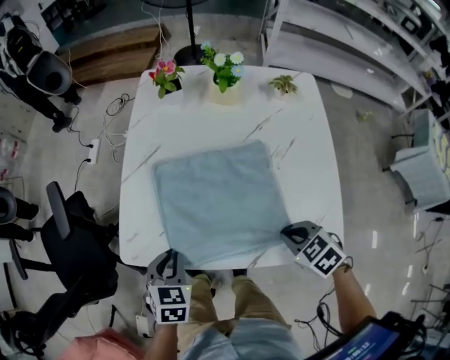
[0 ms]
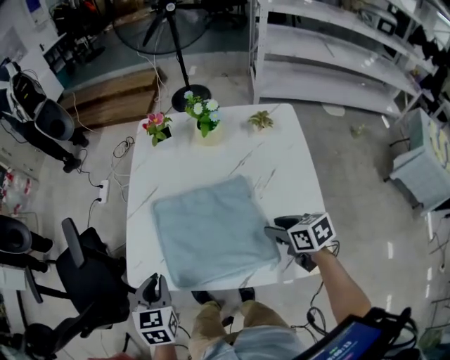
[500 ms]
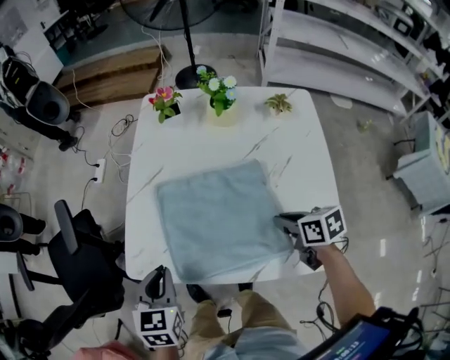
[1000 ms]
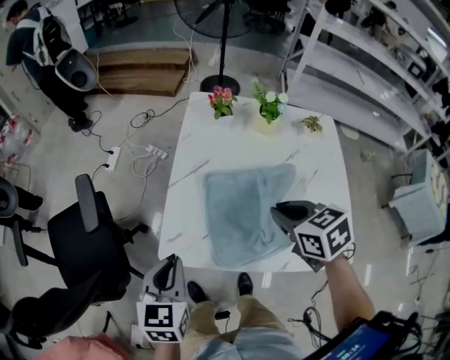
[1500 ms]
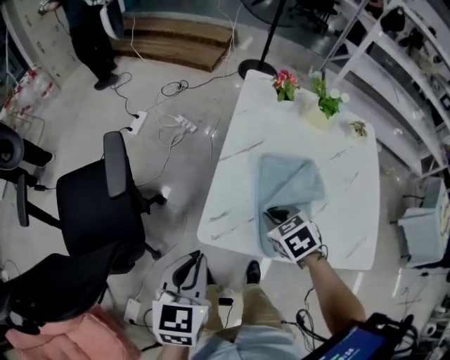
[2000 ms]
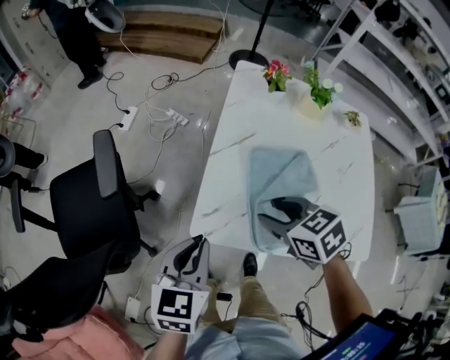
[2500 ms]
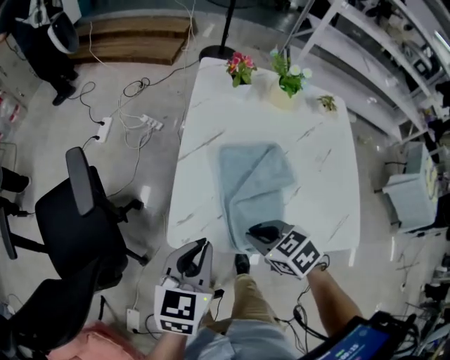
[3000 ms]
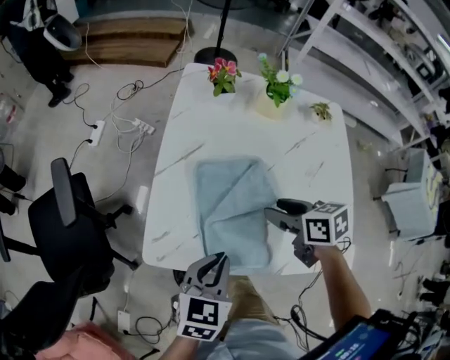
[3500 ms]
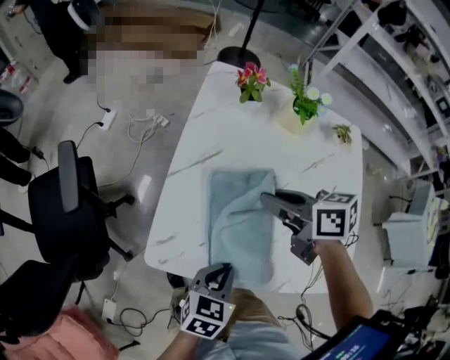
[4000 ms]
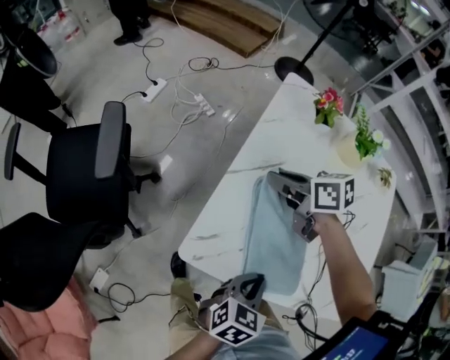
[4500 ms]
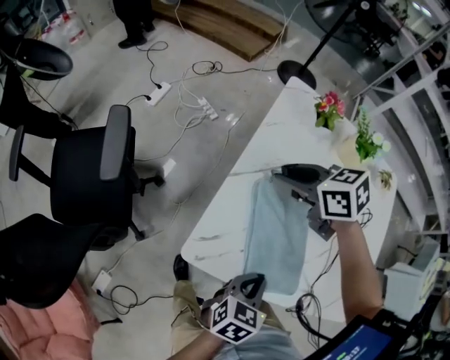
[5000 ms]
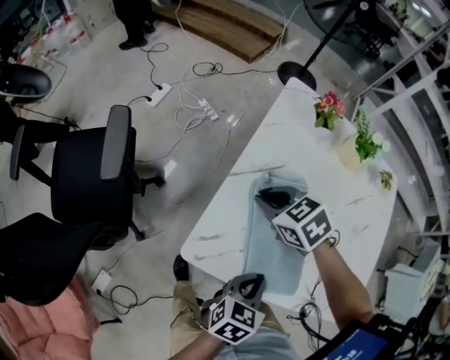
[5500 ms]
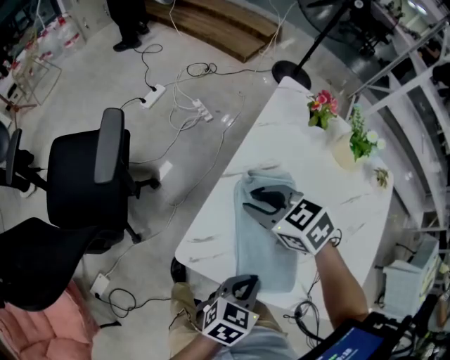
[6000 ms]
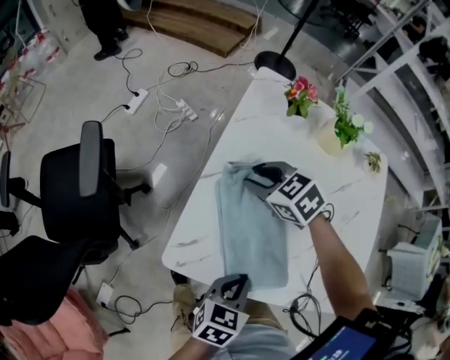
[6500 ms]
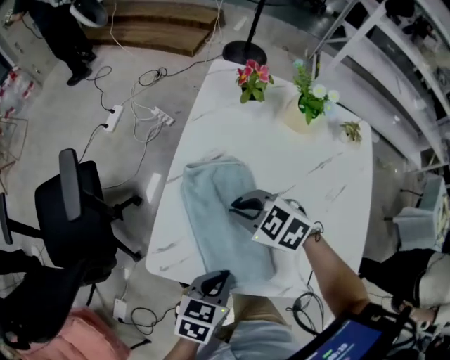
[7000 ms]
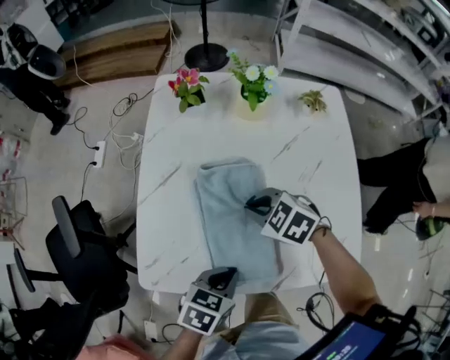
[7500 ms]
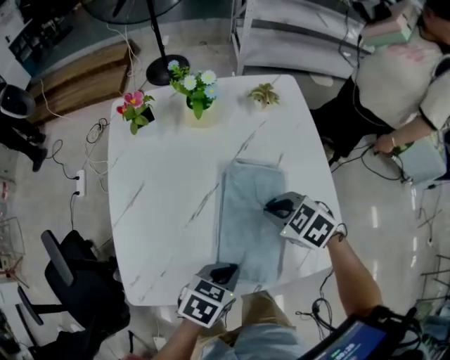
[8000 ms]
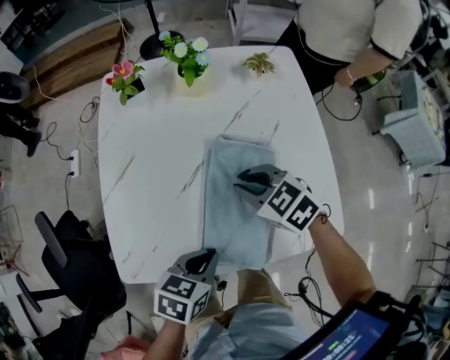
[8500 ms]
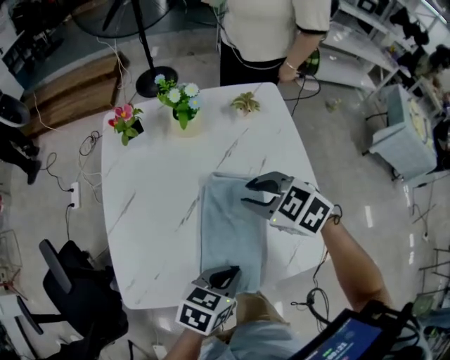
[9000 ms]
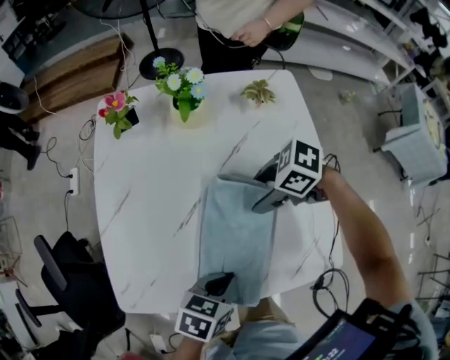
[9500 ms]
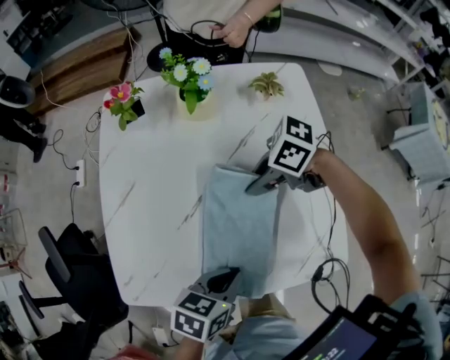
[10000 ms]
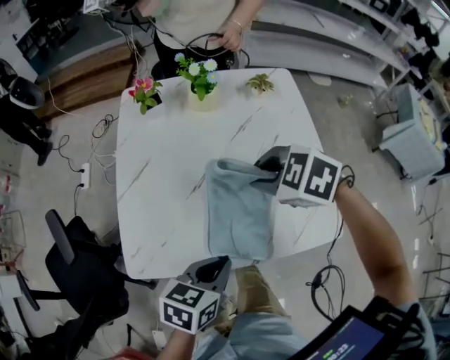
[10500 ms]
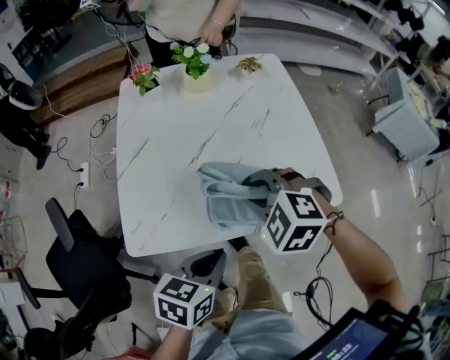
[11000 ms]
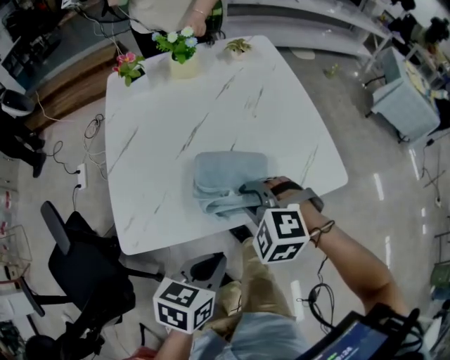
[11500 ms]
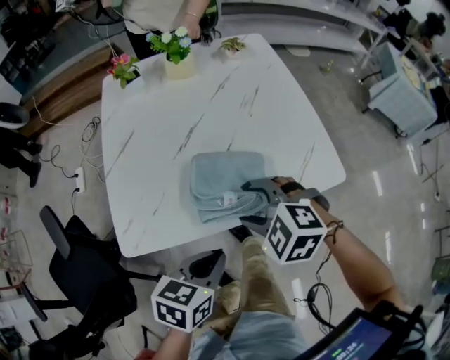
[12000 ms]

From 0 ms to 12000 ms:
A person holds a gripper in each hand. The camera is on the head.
From 0 ms to 2000 ms: The left gripper heads to the left and upward, covering roughly 20 cm, and changes its angle by approximately 30 degrees. Meanwhile the right gripper travels to the left and forward by roughly 30 cm, and opens and closes again.
From 2000 ms to 4000 ms: The right gripper moves upward, to the right and forward, approximately 15 cm, changes its angle by approximately 50 degrees, and opens and closes again. The left gripper heads to the right and downward, covering about 25 cm, and turns by some 30 degrees.
From 4000 ms to 6000 ms: The right gripper is displaced to the left by about 15 cm, and rotates around the line of its fingers by about 40 degrees, counterclockwise from behind.
From 6000 ms to 8000 ms: The right gripper changes place by some 35 cm, and swivels some 30 degrees. The left gripper ends up some 10 cm from where it was, and swivels some 40 degrees.
From 8000 ms to 10000 ms: The right gripper travels upward and back again, approximately 10 cm each way, turns by approximately 50 degrees, and opens and closes again.
From 10000 ms to 12000 ms: The left gripper shifts by about 15 cm; the right gripper changes place by approximately 25 cm, changes its angle by approximately 60 degrees, and opens.

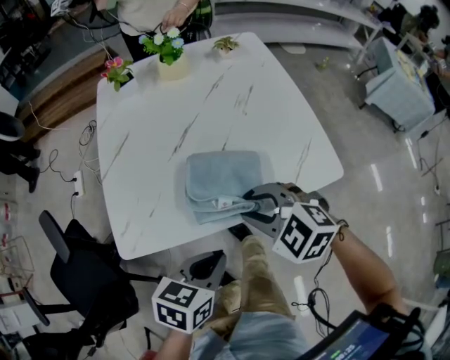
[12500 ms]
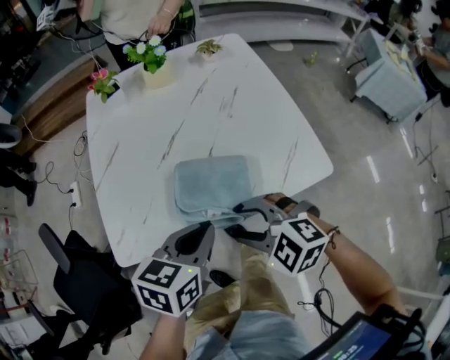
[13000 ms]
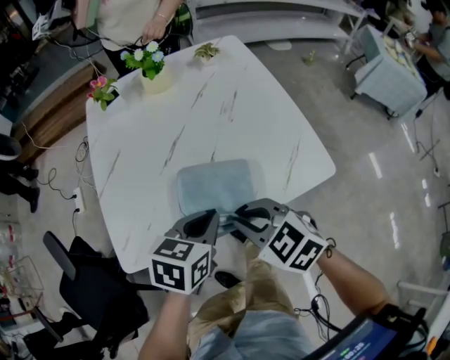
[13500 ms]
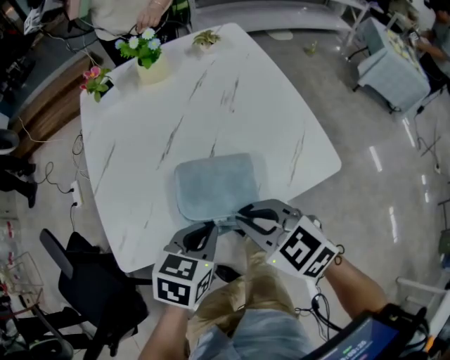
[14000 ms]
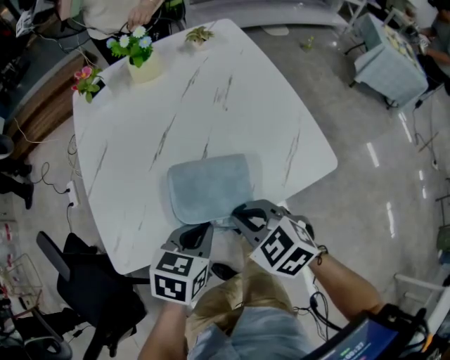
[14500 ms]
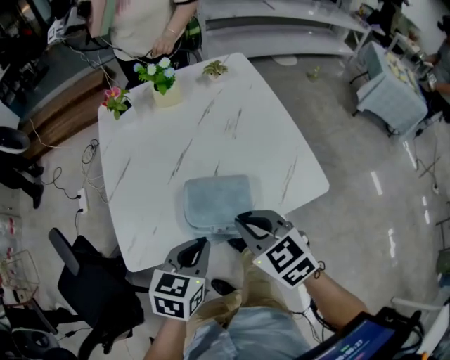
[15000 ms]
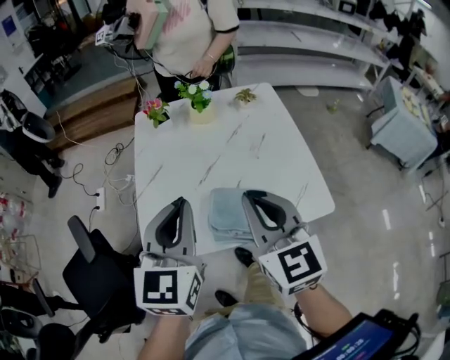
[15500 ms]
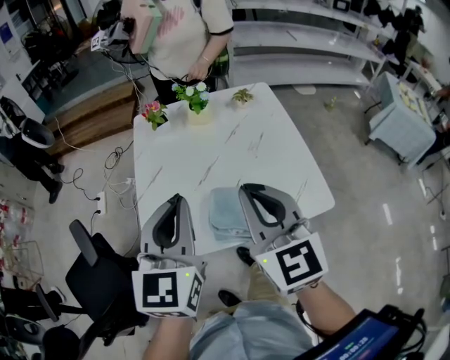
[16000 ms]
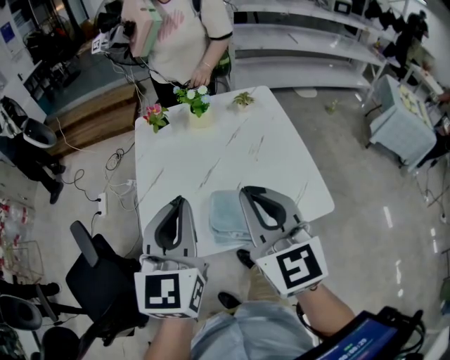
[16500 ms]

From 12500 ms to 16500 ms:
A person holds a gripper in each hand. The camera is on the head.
From 12500 ms to 14500 ms: The right gripper rotates approximately 30 degrees, and closes, while the left gripper moves forward, some 10 cm.
From 14500 ms to 16500 ms: The two grippers go approximately 30 cm upward. The right gripper angles its fingers upward, by some 40 degrees, while the left gripper tips its fingers upward by about 40 degrees.

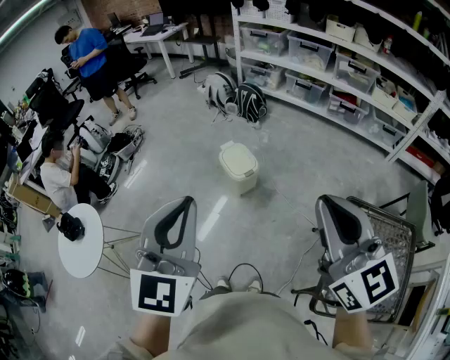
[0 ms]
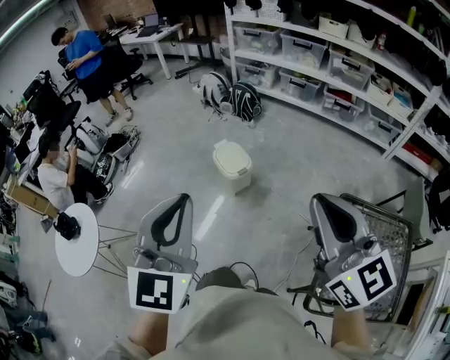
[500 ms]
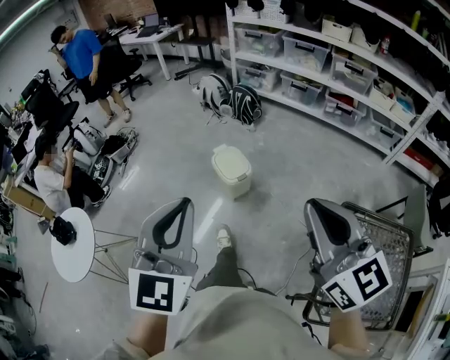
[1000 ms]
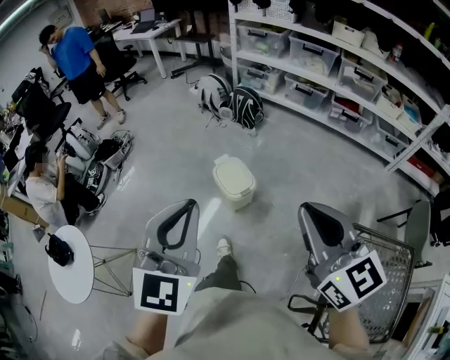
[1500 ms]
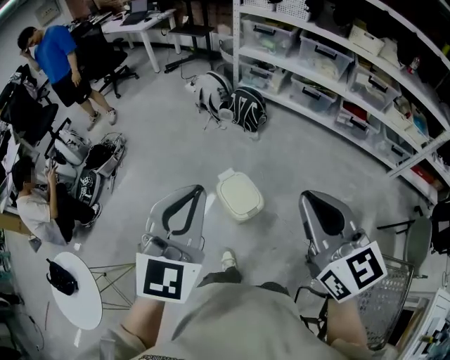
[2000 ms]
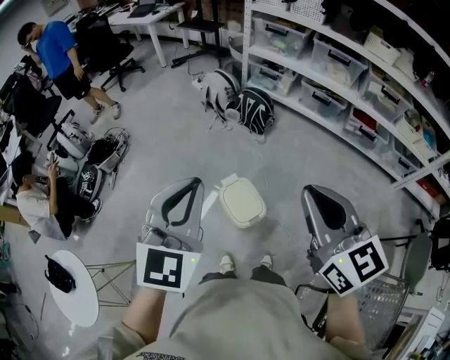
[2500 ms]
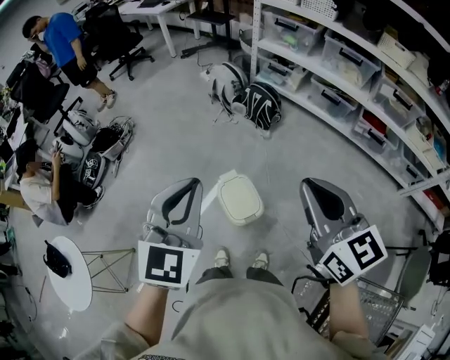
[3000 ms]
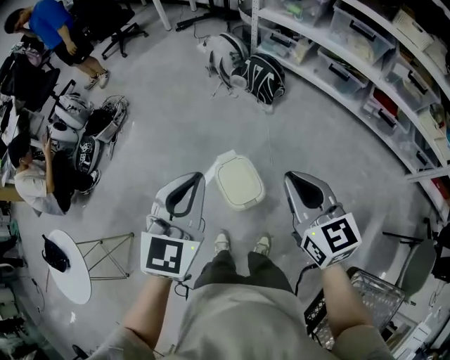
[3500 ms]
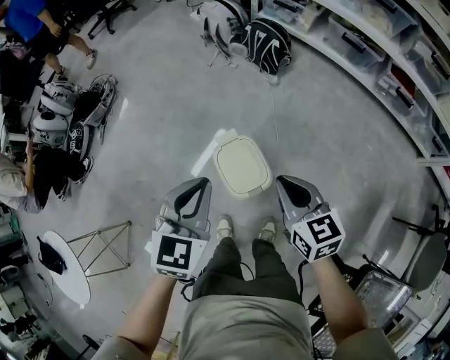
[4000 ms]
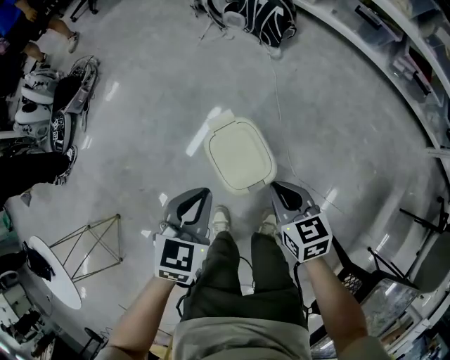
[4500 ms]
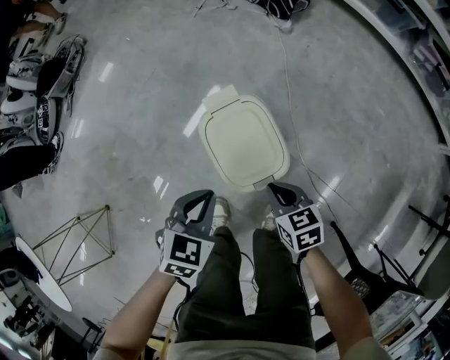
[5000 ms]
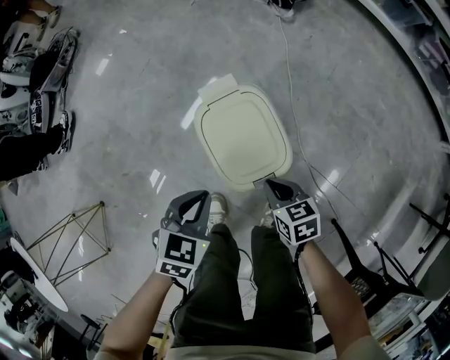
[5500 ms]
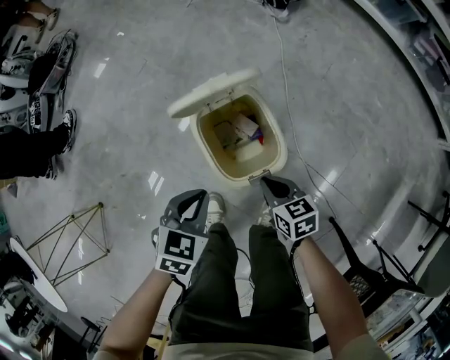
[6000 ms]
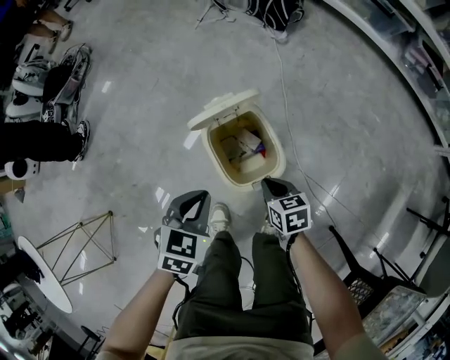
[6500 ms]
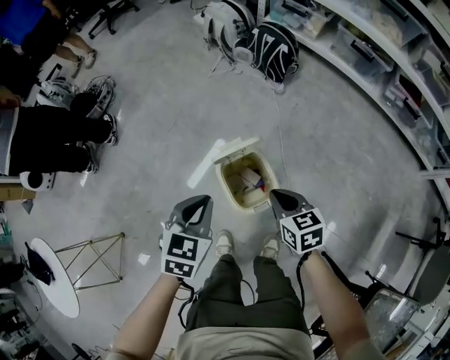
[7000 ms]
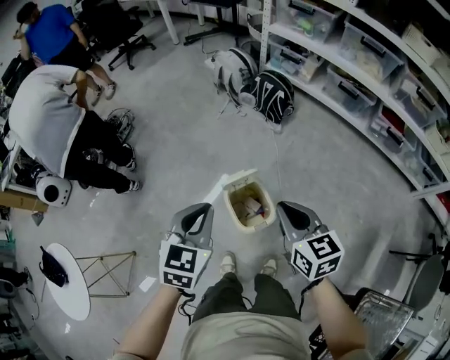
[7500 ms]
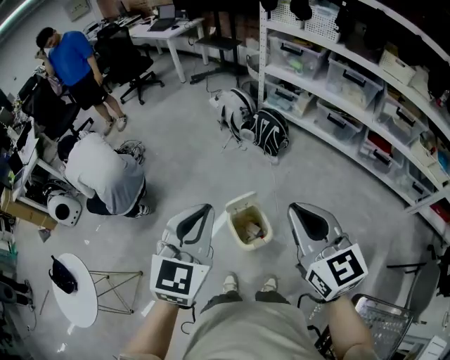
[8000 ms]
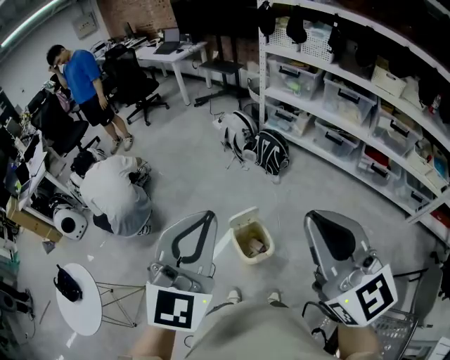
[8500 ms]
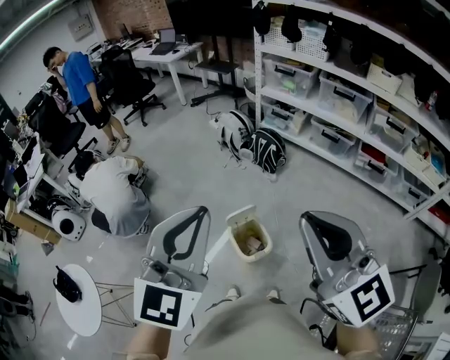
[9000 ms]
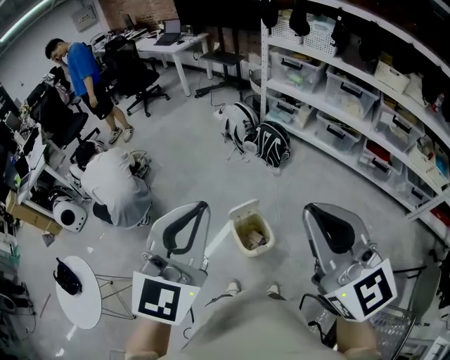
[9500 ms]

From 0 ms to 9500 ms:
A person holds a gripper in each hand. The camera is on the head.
From 0 ms to 2000 ms: The two grippers go approximately 40 cm forward.
From 2000 ms to 4000 ms: Both grippers travel together downward and forward, some 35 cm. The right gripper swivels approximately 30 degrees. The left gripper changes its angle by some 20 degrees.
From 4000 ms to 5500 ms: Both grippers travel together downward, approximately 40 cm. The right gripper changes its angle by about 30 degrees; the left gripper swivels some 30 degrees.
From 5500 ms to 7500 ms: Both grippers move upward, roughly 50 cm. The right gripper rotates about 30 degrees; the left gripper rotates approximately 30 degrees.
From 7500 ms to 9500 ms: The two grippers go about 35 cm upward. The right gripper swivels roughly 40 degrees. The left gripper swivels some 30 degrees.

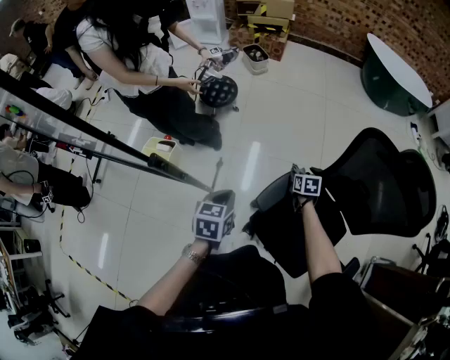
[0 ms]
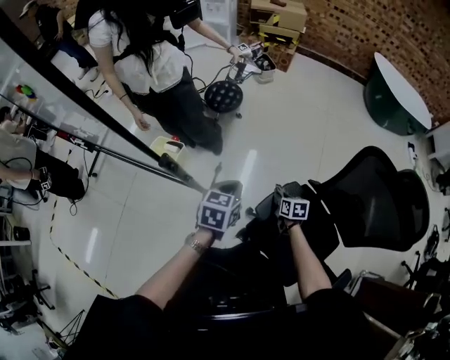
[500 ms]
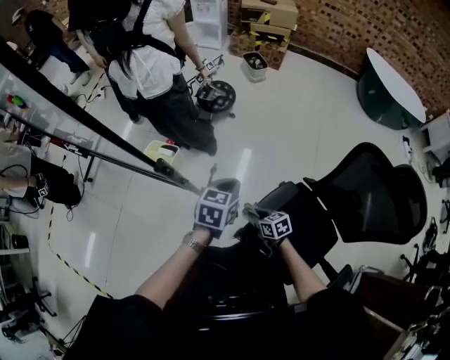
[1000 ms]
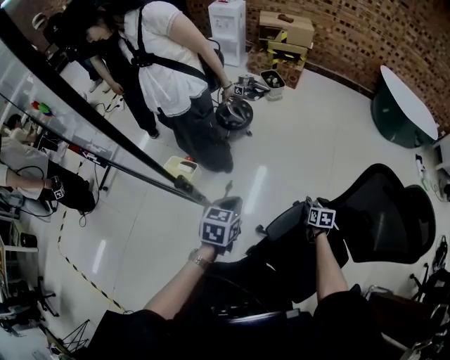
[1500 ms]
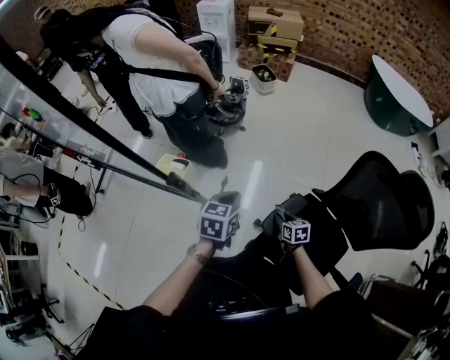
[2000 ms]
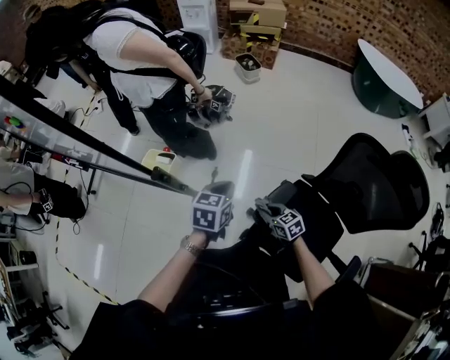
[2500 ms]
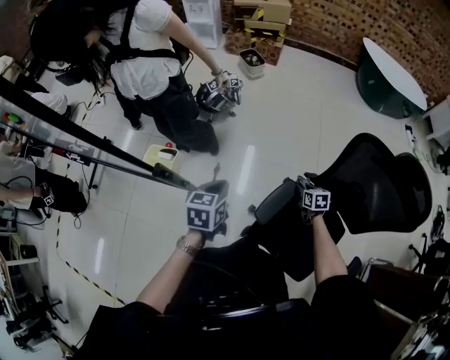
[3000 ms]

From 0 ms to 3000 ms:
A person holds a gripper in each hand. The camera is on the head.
From 0 ms to 1500 ms: The left gripper is displaced forward by approximately 5 cm. Meanwhile the right gripper moves approximately 20 cm to the left and comes back.
From 1500 ms to 3000 ms: The right gripper travels to the left and back again, roughly 20 cm each way.
